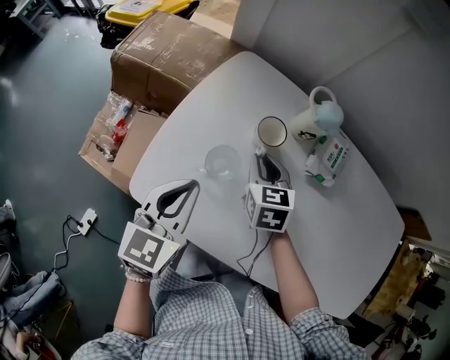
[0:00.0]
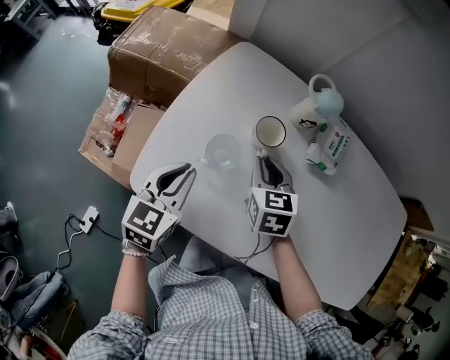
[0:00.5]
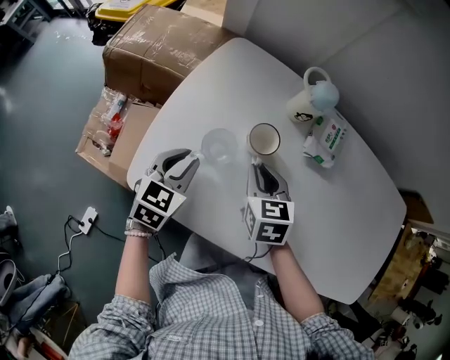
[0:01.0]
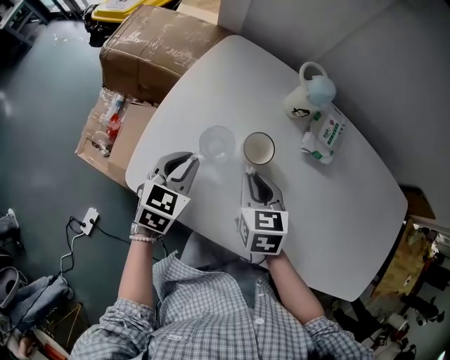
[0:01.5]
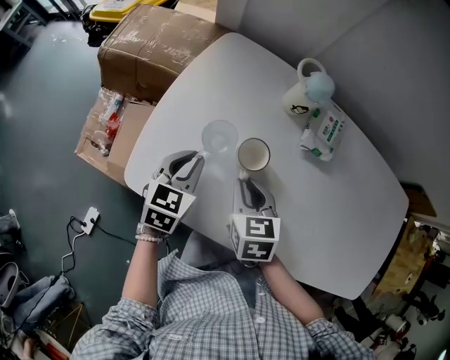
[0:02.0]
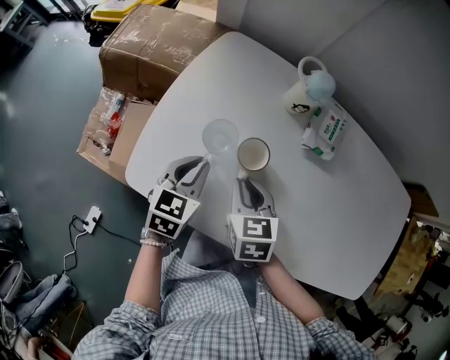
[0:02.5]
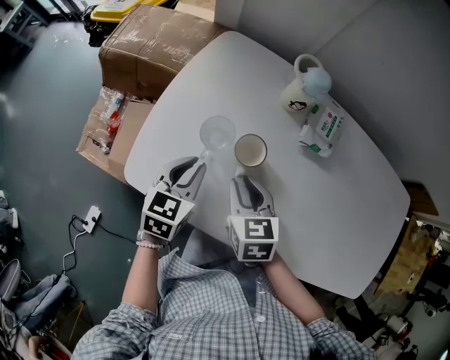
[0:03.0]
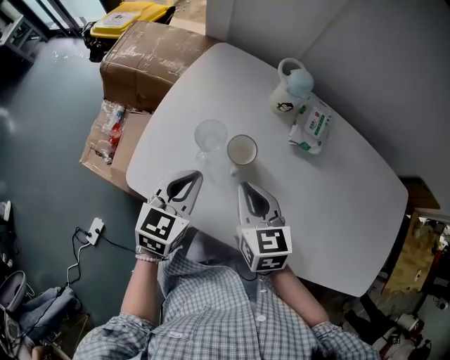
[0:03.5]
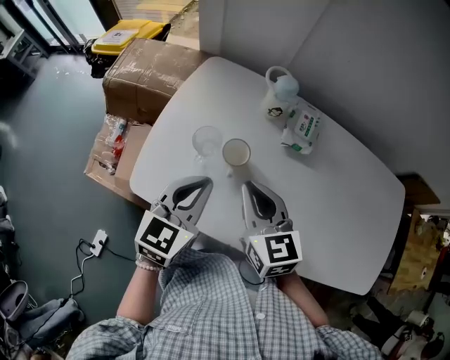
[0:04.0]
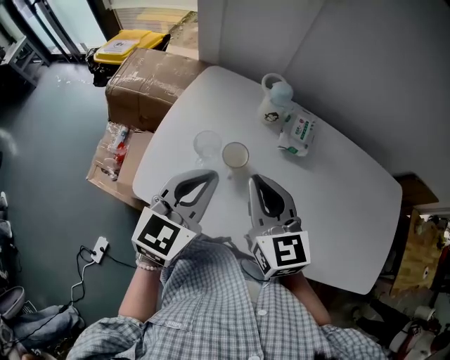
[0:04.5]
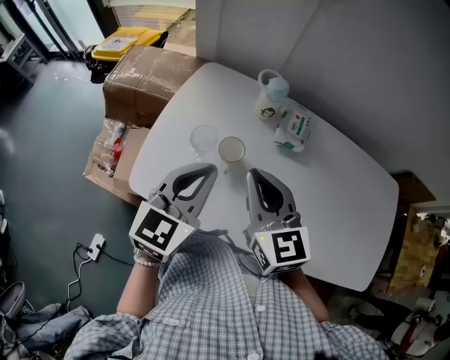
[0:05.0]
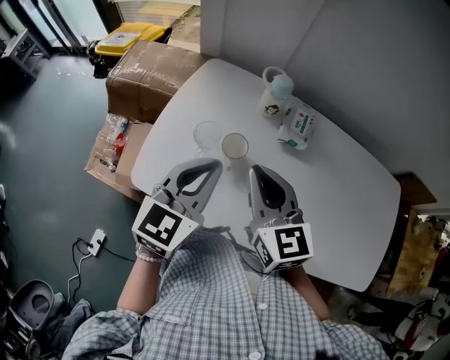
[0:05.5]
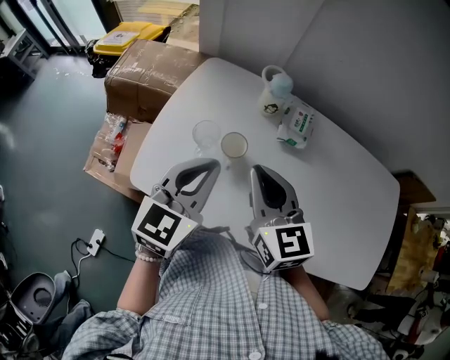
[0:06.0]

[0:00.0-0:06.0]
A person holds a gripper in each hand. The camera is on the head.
0:00.0 to 0:02.0: The right gripper moves backward, some 10 cm. Meanwhile the left gripper is displaced downward by some 10 cm.
0:02.0 to 0:04.0: The right gripper heads upward, covering approximately 15 cm, and rotates about 20 degrees. Meanwhile the left gripper heads upward, to the right and backward, covering roughly 15 cm.
0:04.0 to 0:06.0: The two grippers go approximately 5 cm upward.

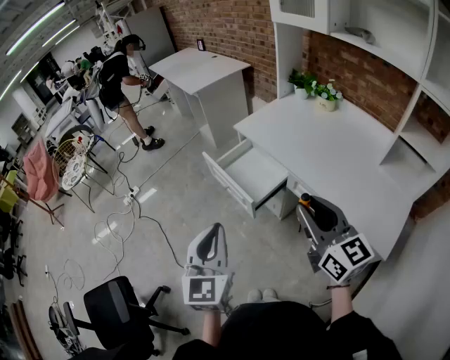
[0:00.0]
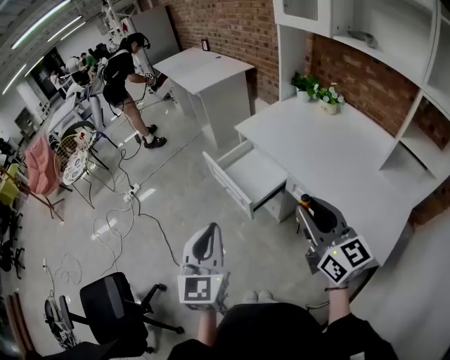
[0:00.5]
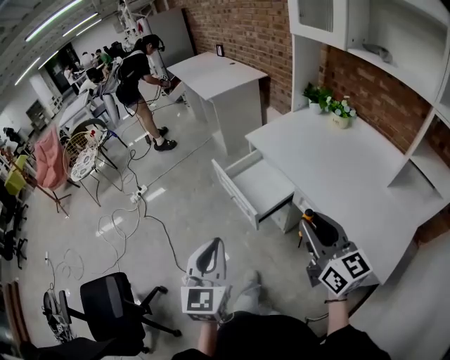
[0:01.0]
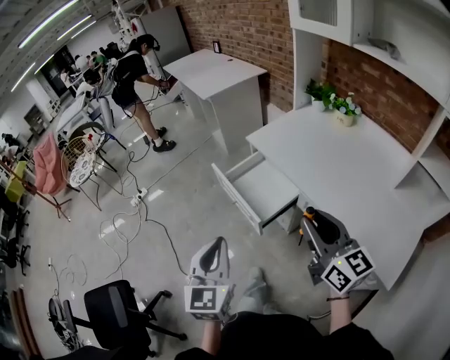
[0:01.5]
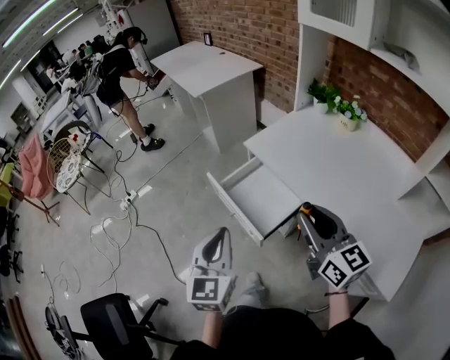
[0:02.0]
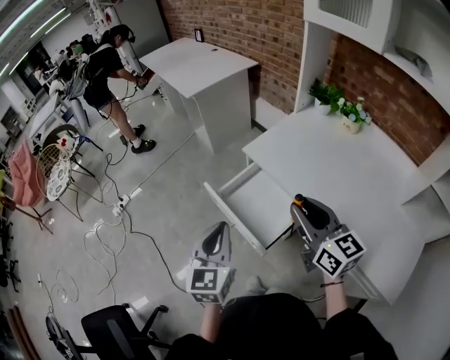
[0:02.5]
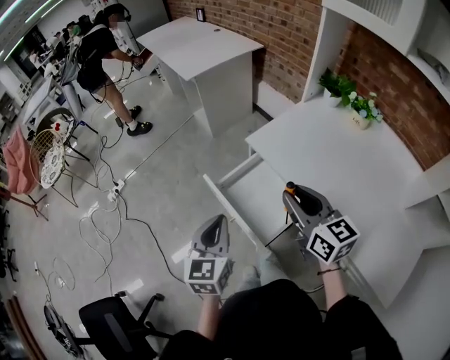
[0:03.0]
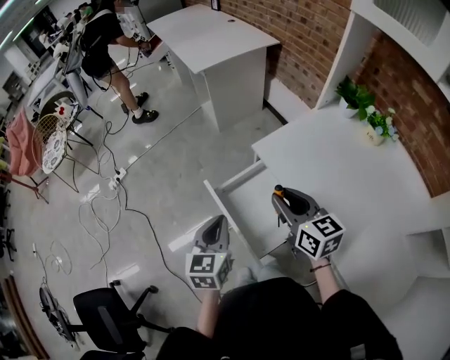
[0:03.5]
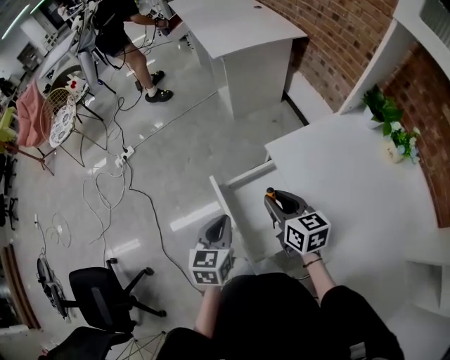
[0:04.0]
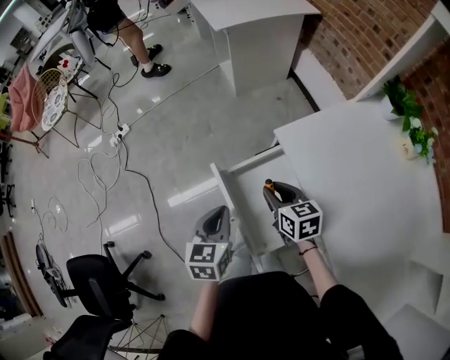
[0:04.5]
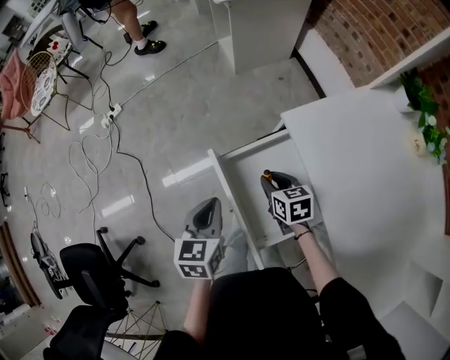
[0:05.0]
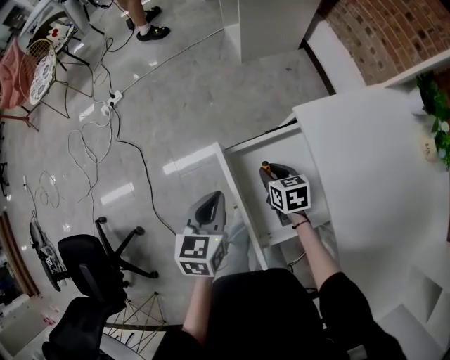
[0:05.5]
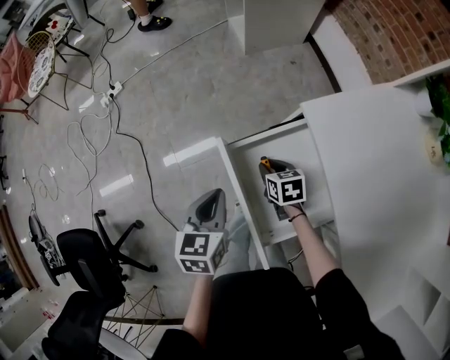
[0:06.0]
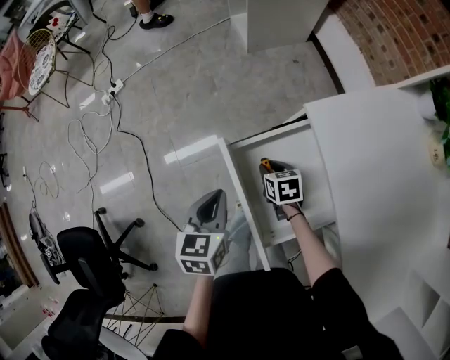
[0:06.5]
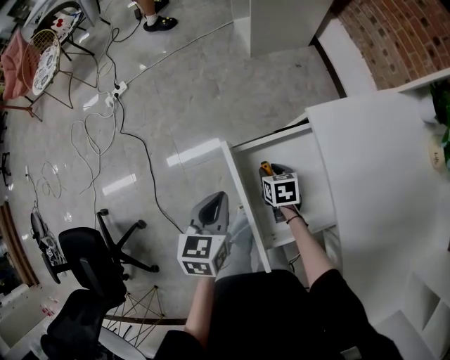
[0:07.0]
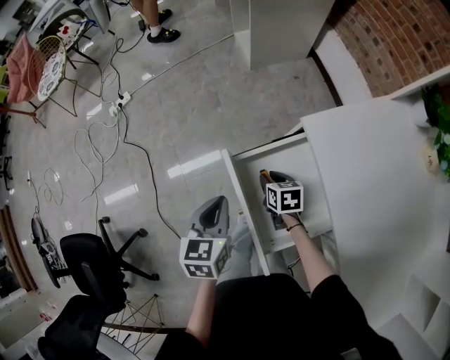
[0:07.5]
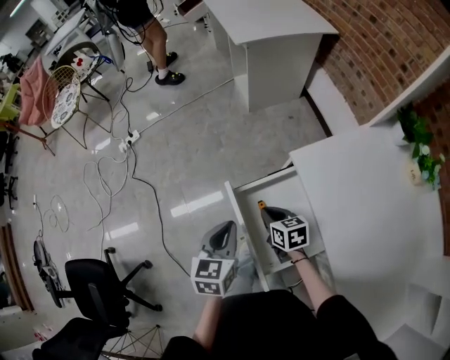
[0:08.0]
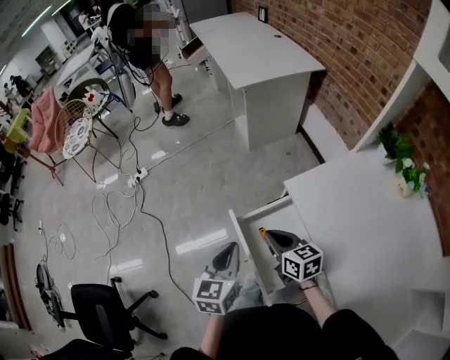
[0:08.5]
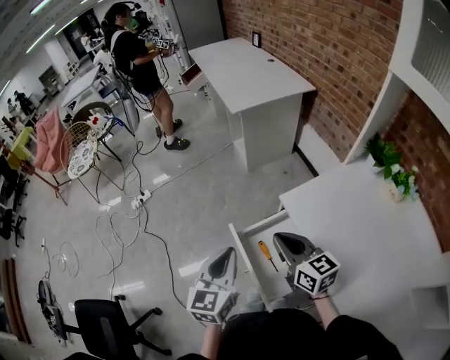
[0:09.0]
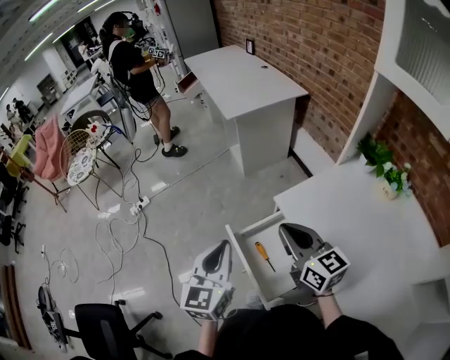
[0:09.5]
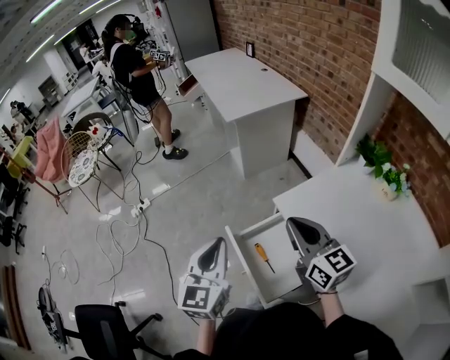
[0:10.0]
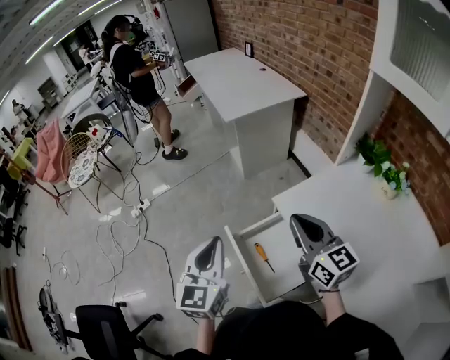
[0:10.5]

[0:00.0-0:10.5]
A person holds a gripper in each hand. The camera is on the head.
0:00.0 to 0:02.0: Both grippers travel together forward, some 15 cm.
0:02.0 to 0:04.0: Both grippers move forward and downward, approximately 30 cm. The right gripper changes its angle by approximately 30 degrees, while the left gripper rotates approximately 30 degrees.
0:04.0 to 0:06.5: The right gripper shifts some 30 cm downward, and tilts its fingers about 30 degrees downward. Meanwhile the left gripper moves downward, roughly 10 cm.
0:06.5 to 0:08.5: The left gripper is displaced upward by roughly 15 cm. The right gripper shifts approximately 25 cm upward, tilts its fingers roughly 30 degrees upward, and closes up.
0:08.5 to 0:10.5: The left gripper heads upward, covering some 15 cm, and turns by some 20 degrees. The right gripper is displaced upward and to the right by approximately 25 cm, and turns by about 30 degrees.

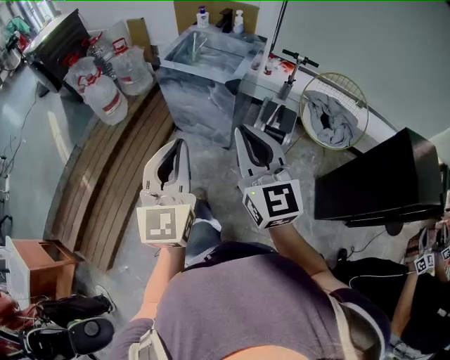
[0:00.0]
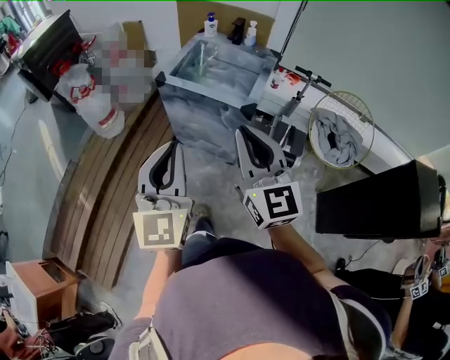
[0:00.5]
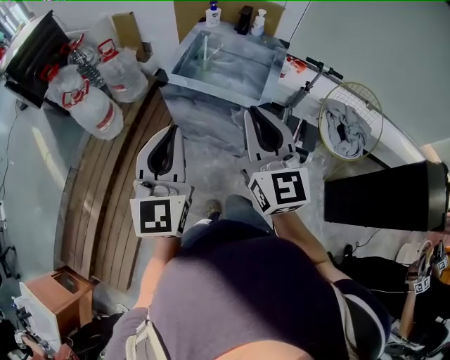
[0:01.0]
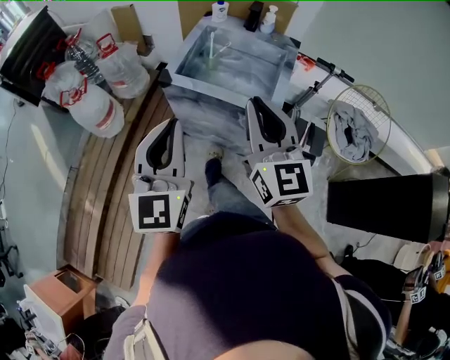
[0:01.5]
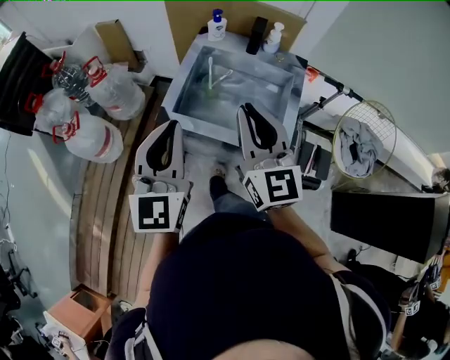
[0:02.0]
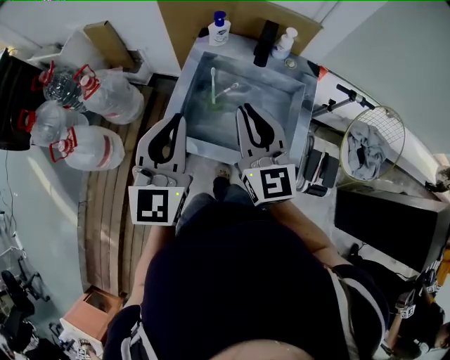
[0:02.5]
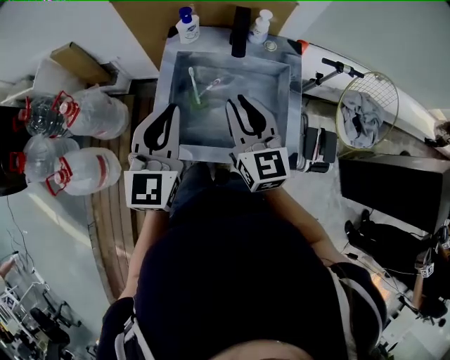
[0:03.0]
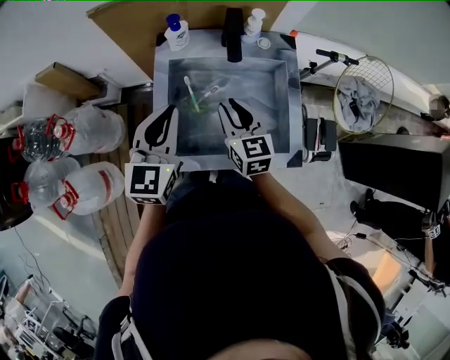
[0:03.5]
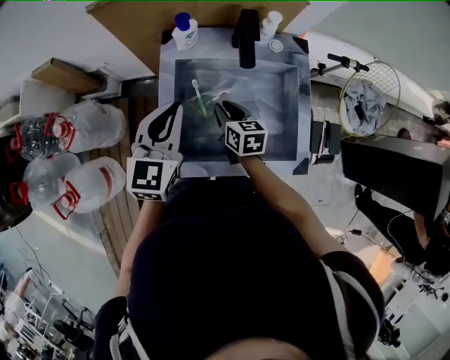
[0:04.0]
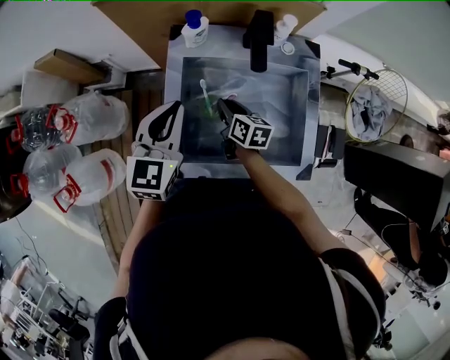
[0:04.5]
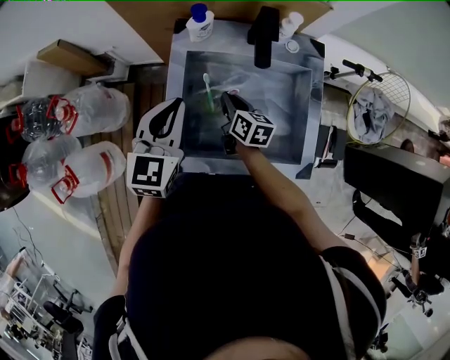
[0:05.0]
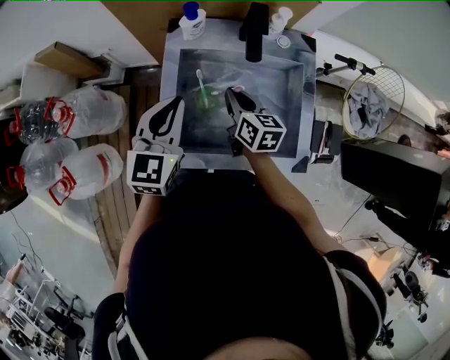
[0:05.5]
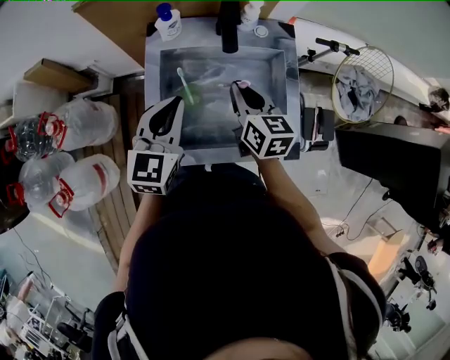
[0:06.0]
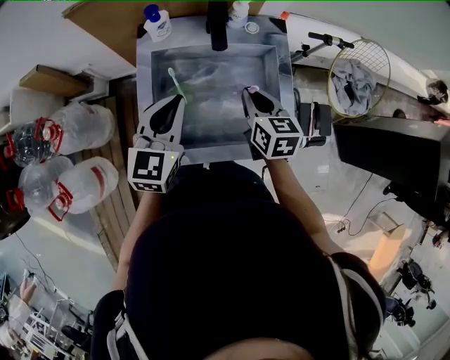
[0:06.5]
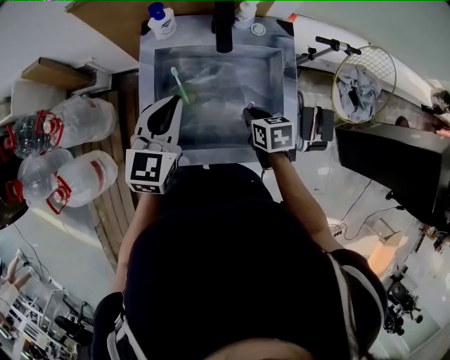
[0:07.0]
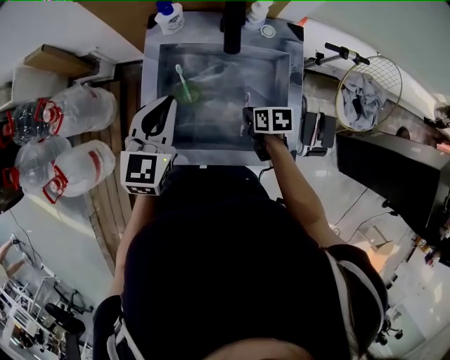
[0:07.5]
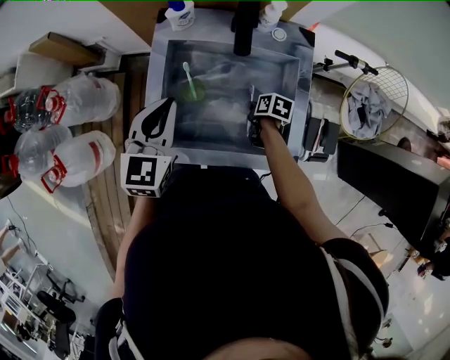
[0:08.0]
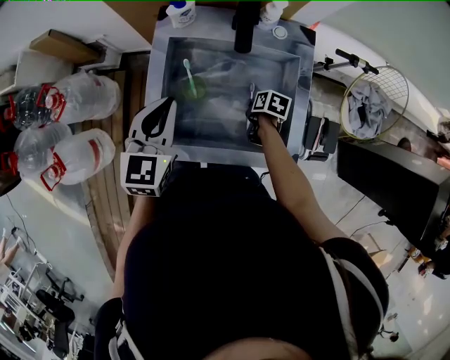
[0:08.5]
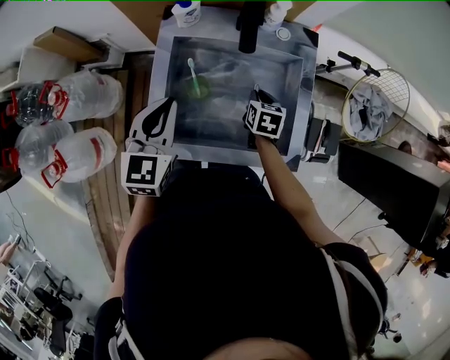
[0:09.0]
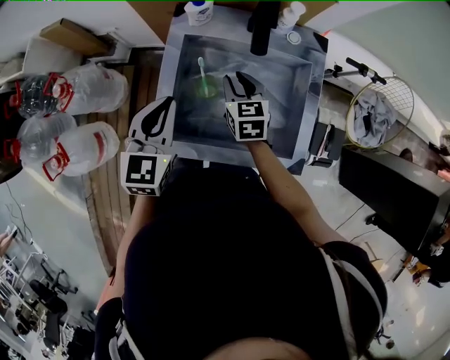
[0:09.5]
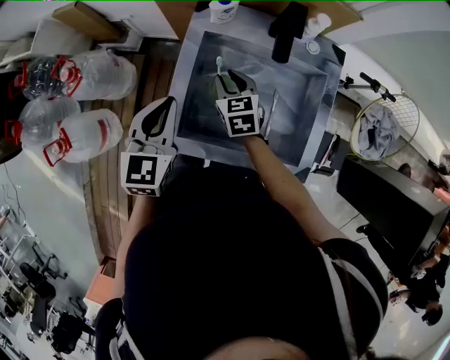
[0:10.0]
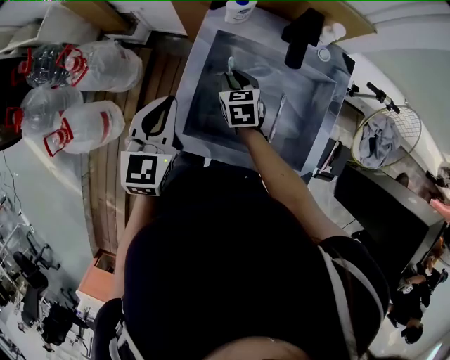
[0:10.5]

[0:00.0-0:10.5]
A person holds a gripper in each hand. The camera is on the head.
0:00.0 to 0:02.0: Both grippers are carried forward, about 50 cm.
0:02.0 to 0:04.0: The right gripper travels downward and forward by roughly 40 cm, and tilts its fingers some 40 degrees downward, while the left gripper travels forward and downward by some 30 cm, and swivels some 30 degrees.
0:04.0 to 0:06.5: The right gripper heads to the right and upward, covering about 15 cm. The left gripper heads to the right, covering about 5 cm.
0:06.5 to 0:08.5: The right gripper goes roughly 25 cm downward, and points its fingers approximately 30 degrees further downward.
0:08.5 to 0:10.5: The right gripper travels to the left, upward and forward by roughly 25 cm, and rolls counterclockwise, seen from behind, by some 50 degrees; the left gripper travels to the left by approximately 10 cm.
